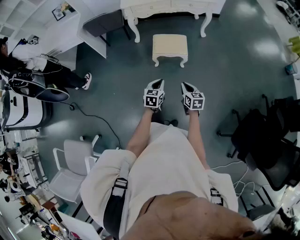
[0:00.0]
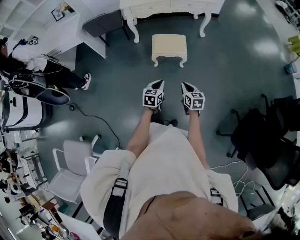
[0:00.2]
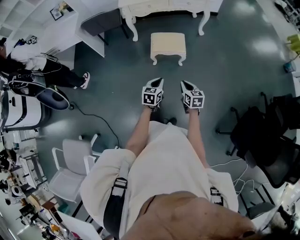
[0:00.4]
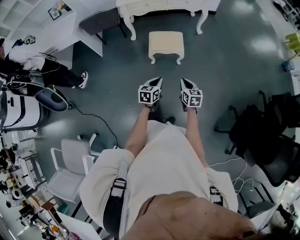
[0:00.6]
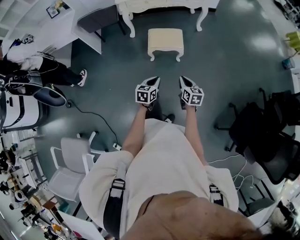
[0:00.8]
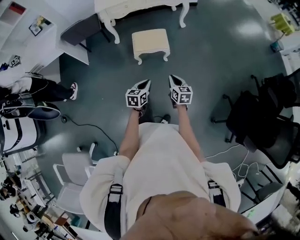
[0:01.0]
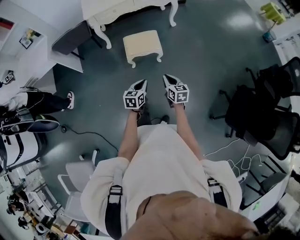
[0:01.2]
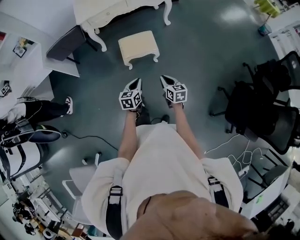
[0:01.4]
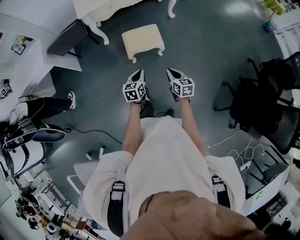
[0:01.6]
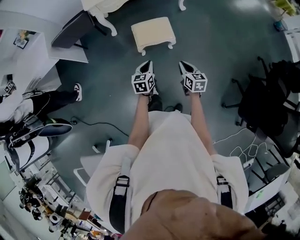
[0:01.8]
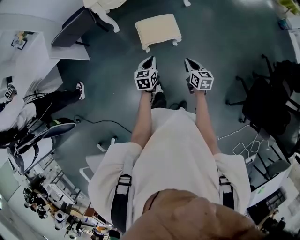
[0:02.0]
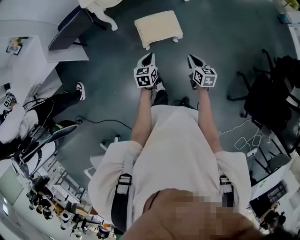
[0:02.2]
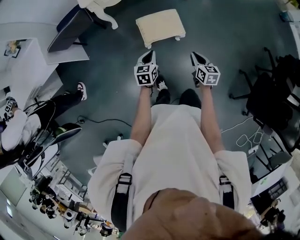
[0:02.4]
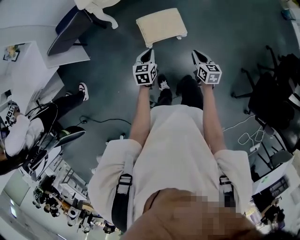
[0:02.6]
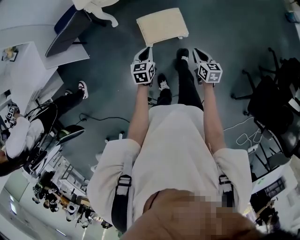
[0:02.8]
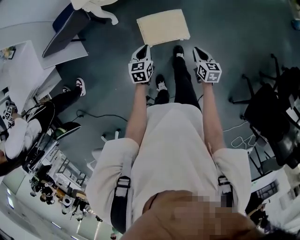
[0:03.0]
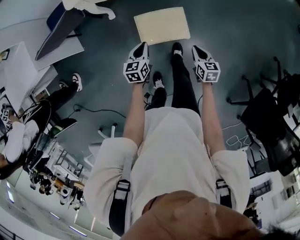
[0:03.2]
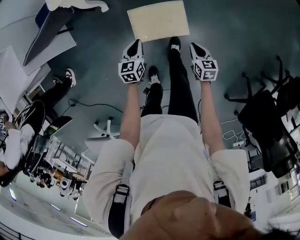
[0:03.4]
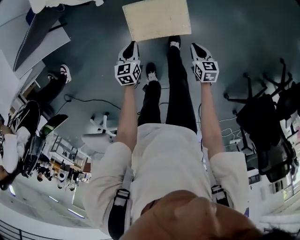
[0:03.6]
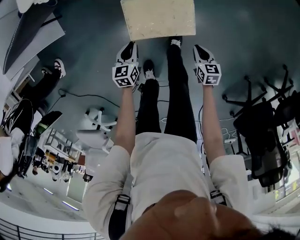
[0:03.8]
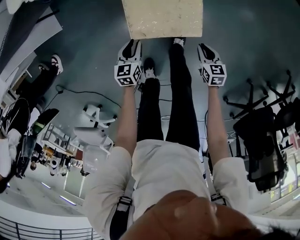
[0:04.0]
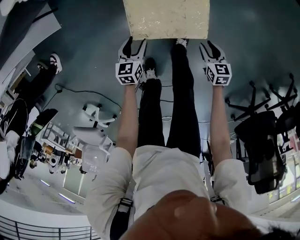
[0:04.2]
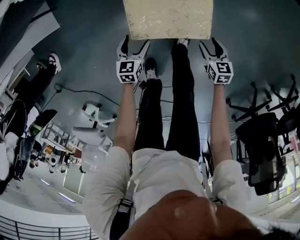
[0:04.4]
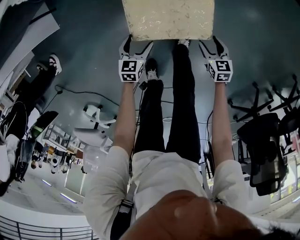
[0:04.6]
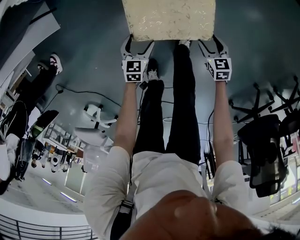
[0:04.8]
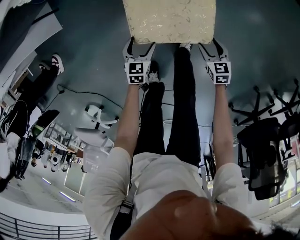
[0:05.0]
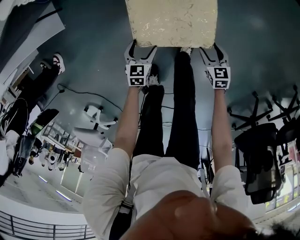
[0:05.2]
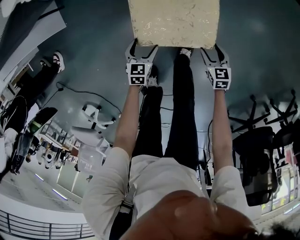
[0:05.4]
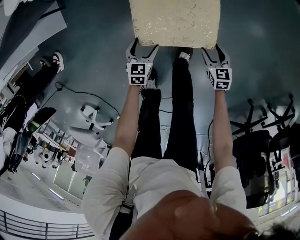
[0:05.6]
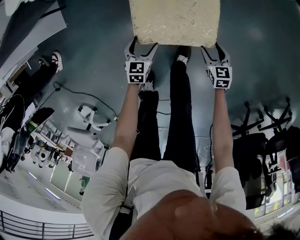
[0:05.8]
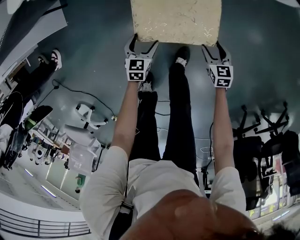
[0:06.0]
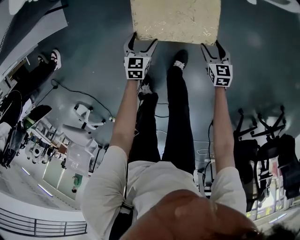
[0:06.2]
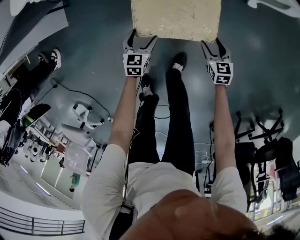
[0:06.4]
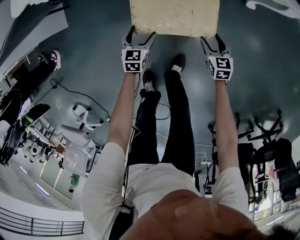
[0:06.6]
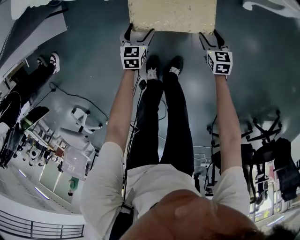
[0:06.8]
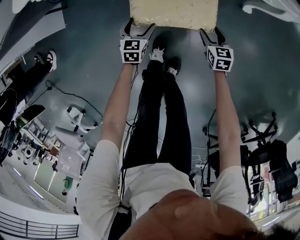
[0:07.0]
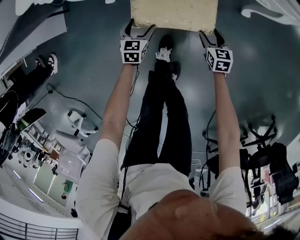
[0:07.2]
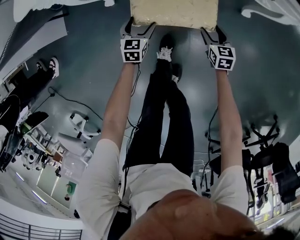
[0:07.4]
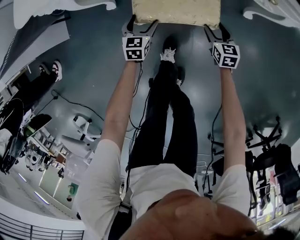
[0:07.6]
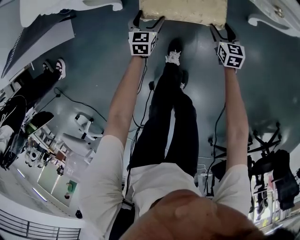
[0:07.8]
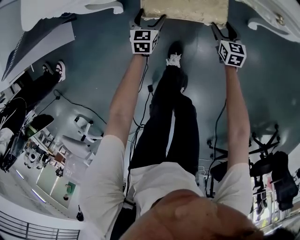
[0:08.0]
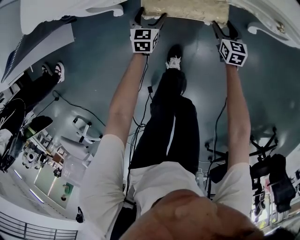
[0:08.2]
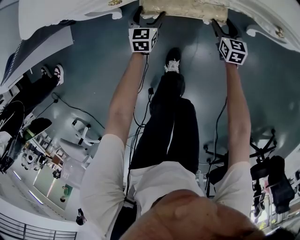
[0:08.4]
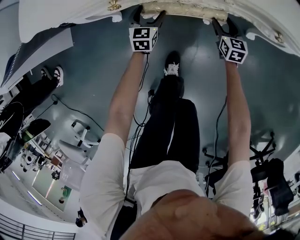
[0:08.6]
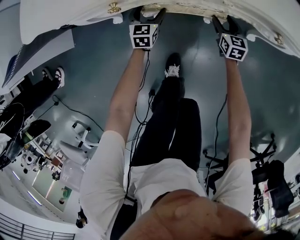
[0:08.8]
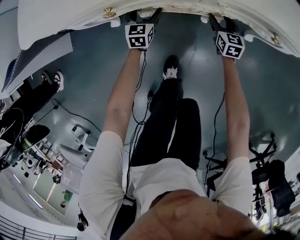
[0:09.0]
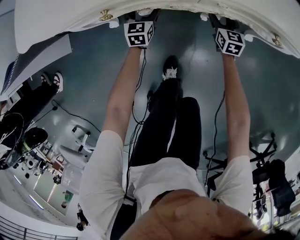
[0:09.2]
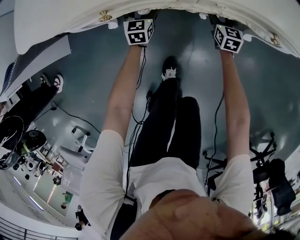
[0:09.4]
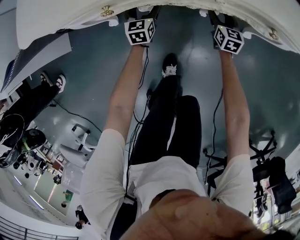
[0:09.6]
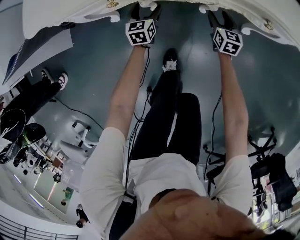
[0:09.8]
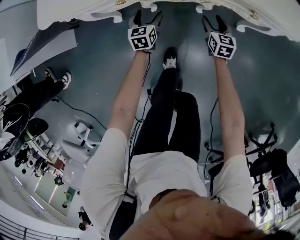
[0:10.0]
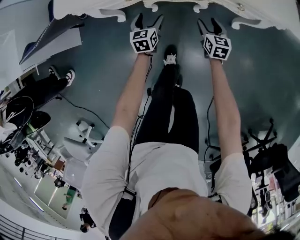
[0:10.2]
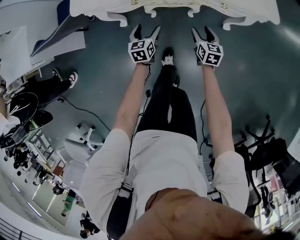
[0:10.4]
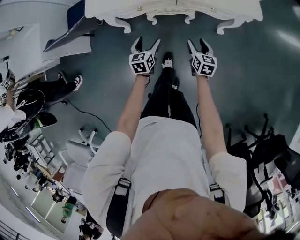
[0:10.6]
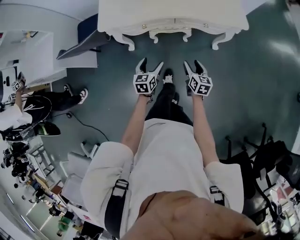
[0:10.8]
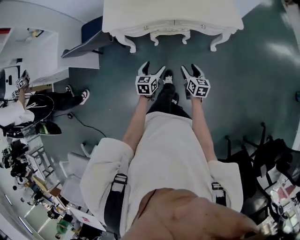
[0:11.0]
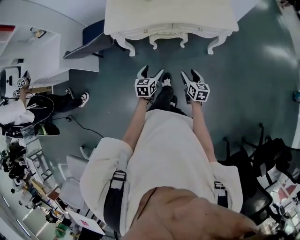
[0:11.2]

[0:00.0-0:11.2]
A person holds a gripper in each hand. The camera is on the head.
0:00.0 to 0:01.6: Both grippers move forward, roughly 10 cm.
0:01.6 to 0:03.2: The right gripper travels forward and downward by some 35 cm; the left gripper shifts roughly 35 cm forward.
0:03.2 to 0:04.8: The two grippers go approximately 35 cm downward. The right gripper rotates approximately 20 degrees, and opens up. Meanwhile the left gripper opens up.
0:04.8 to 0:06.4: Both grippers travel together forward, some 15 cm.
0:06.4 to 0:08.0: Both grippers travel together forward, some 25 cm.
0:08.0 to 0:09.6: The grippers both shift forward by approximately 10 cm.
0:09.6 to 0:11.2: Both grippers travel together upward and backward, roughly 60 cm.

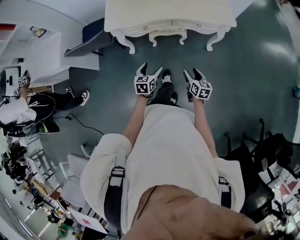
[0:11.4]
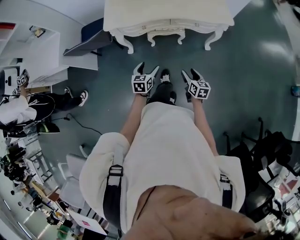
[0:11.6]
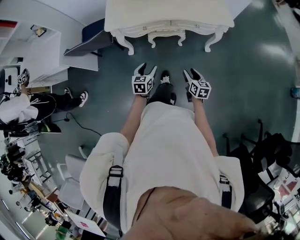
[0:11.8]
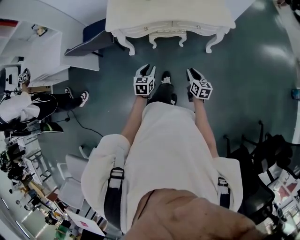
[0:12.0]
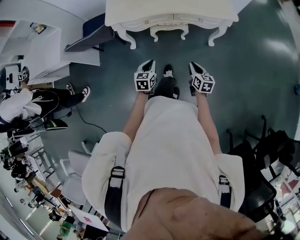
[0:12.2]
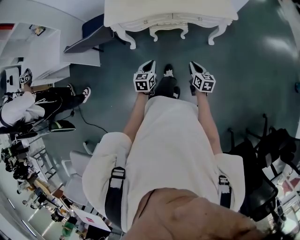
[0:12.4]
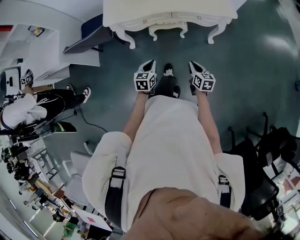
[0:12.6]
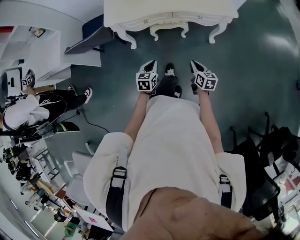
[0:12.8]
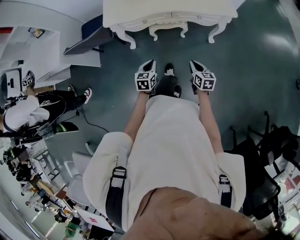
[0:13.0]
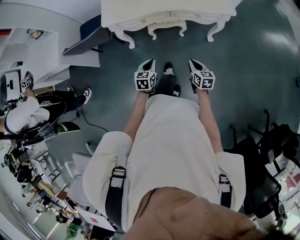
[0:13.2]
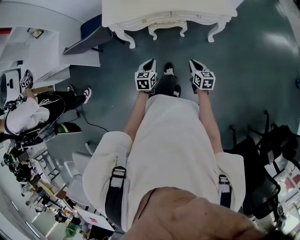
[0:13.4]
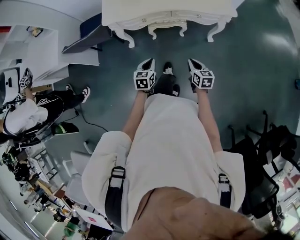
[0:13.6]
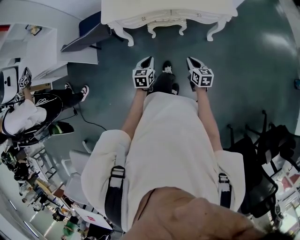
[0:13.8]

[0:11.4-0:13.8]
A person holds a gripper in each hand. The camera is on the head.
0:11.4 to 0:12.6: The left gripper closes. The right gripper closes its fingers.
0:12.6 to 0:13.8: There are only small adjustments of the grippers.

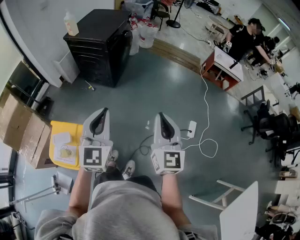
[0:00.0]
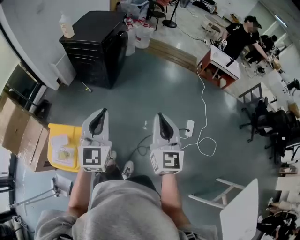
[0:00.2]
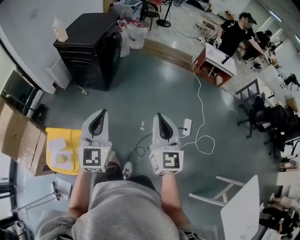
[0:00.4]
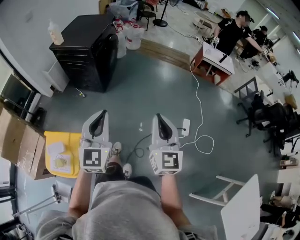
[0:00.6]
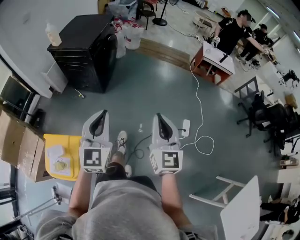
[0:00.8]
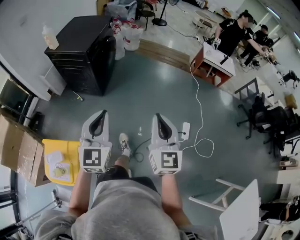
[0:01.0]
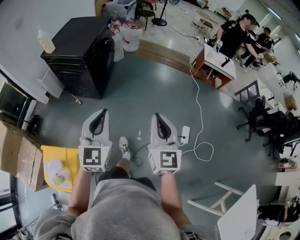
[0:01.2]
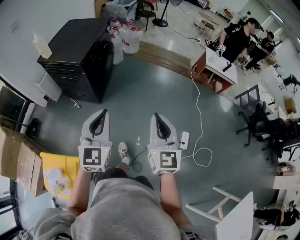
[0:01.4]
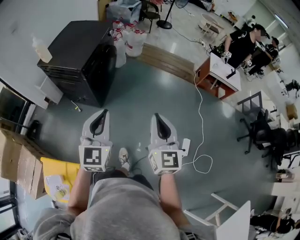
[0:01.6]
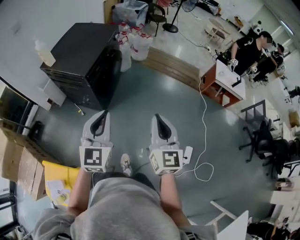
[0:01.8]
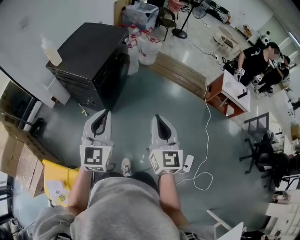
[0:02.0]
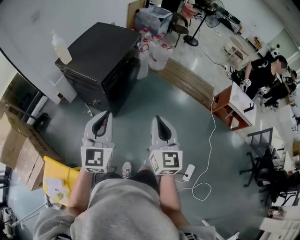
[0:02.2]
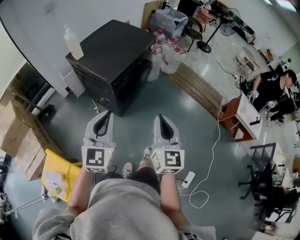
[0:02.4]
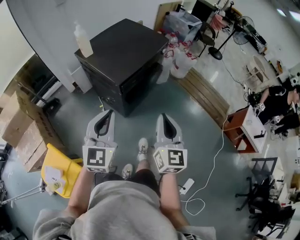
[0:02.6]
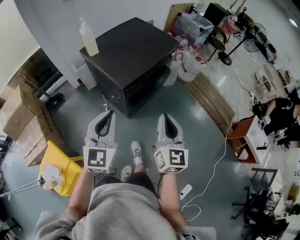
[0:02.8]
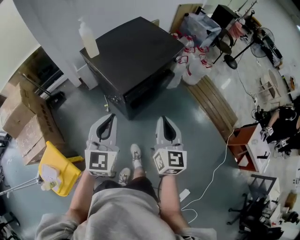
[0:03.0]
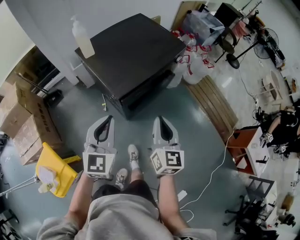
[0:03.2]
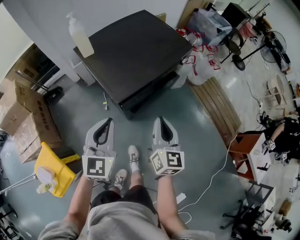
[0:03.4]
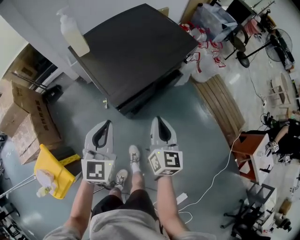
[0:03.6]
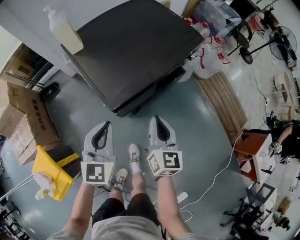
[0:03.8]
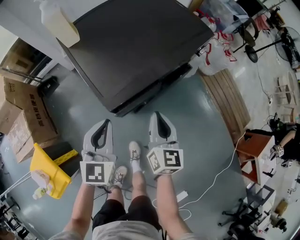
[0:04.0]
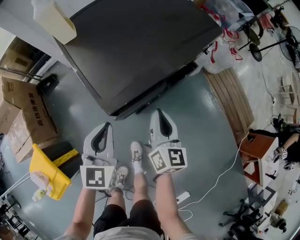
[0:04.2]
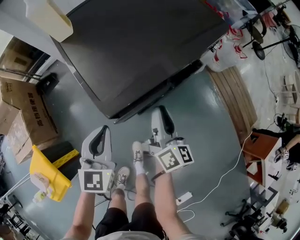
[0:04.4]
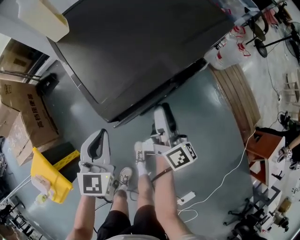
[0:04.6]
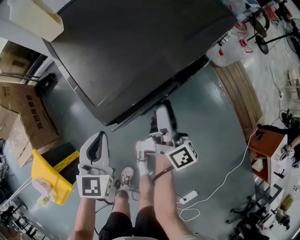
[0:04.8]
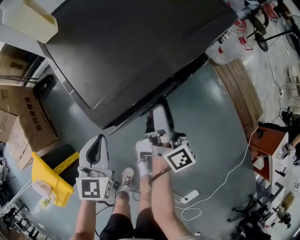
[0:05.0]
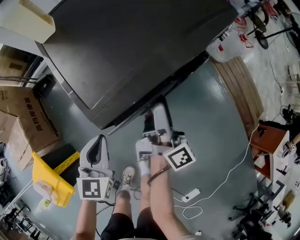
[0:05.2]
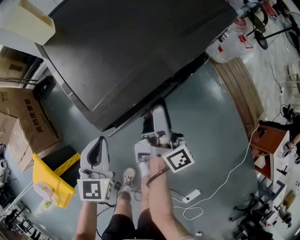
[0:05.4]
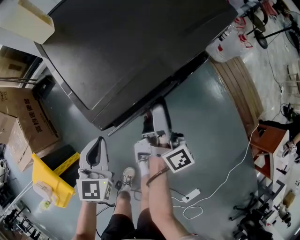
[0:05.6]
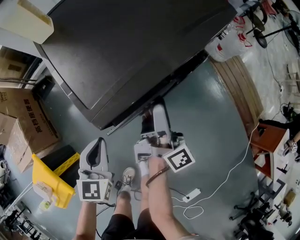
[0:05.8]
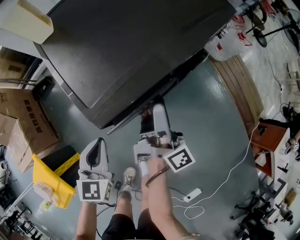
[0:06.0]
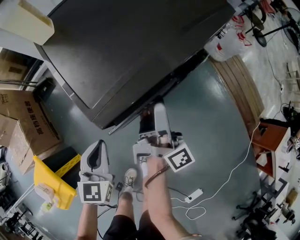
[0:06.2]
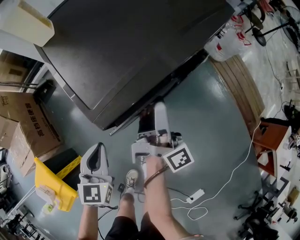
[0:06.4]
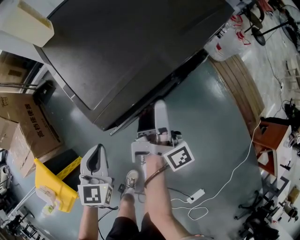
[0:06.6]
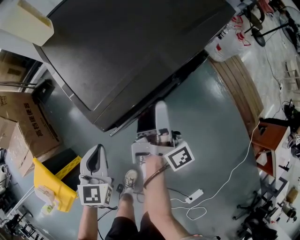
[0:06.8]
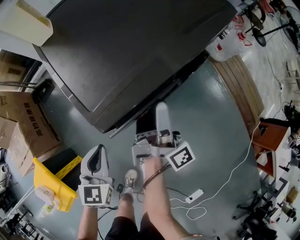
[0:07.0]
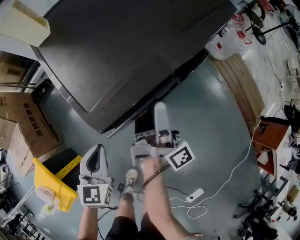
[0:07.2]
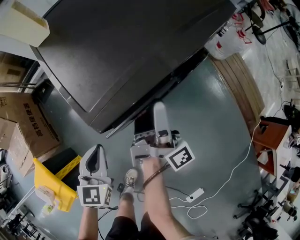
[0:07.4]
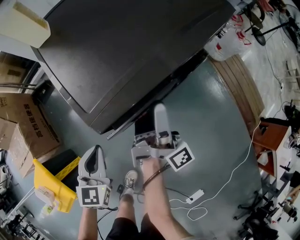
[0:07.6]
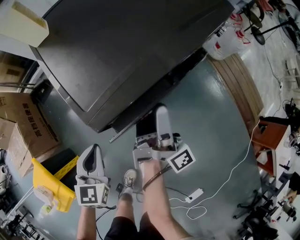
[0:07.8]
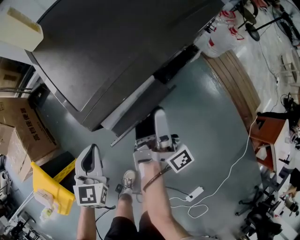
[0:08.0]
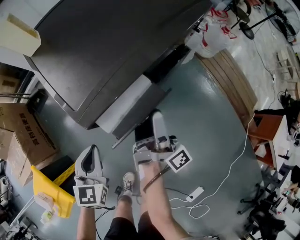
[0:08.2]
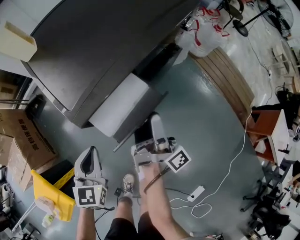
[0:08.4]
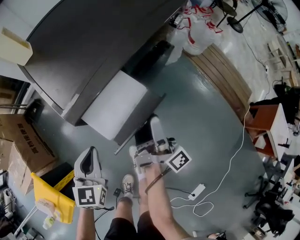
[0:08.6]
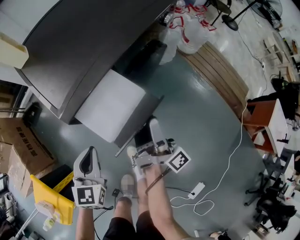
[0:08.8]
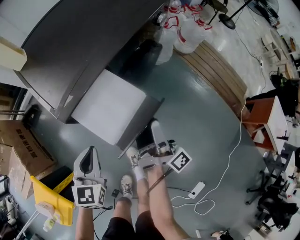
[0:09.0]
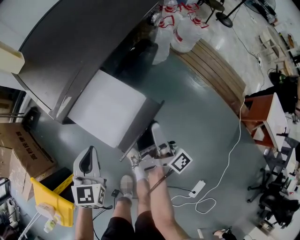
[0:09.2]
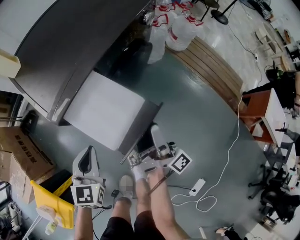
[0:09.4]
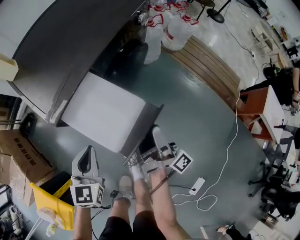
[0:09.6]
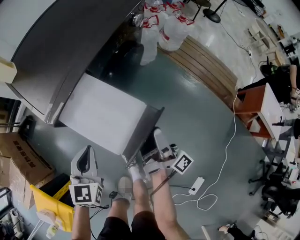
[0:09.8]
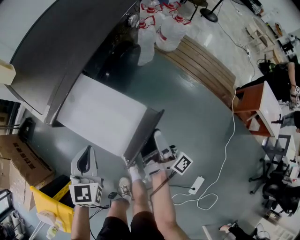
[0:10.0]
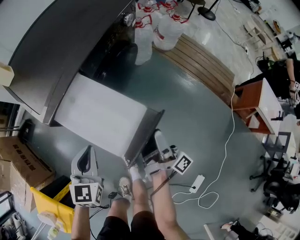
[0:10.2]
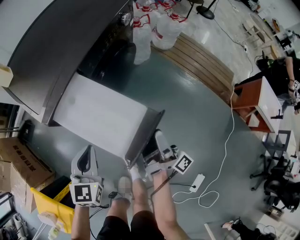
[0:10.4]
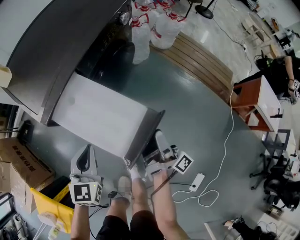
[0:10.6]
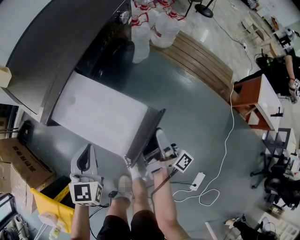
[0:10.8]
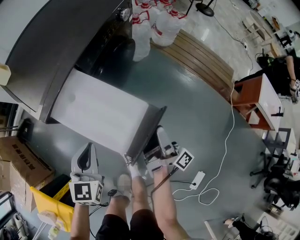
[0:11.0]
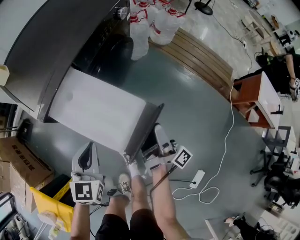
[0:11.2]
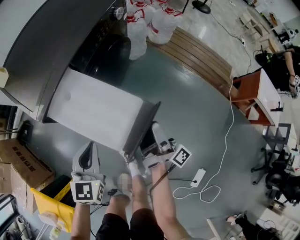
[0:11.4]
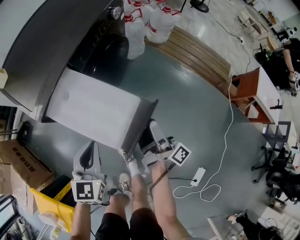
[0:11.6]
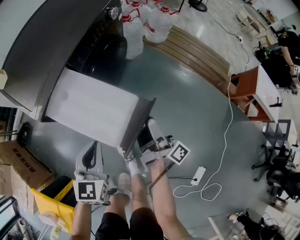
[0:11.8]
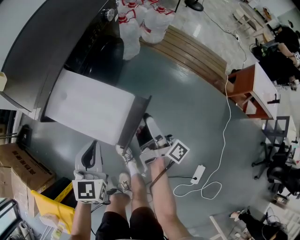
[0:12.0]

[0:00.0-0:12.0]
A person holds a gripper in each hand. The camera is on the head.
0:00.0 to 0:01.6: The two grippers go approximately 30 cm forward.
0:01.6 to 0:03.0: The right gripper changes place by roughly 40 cm, and rotates some 30 degrees, while the left gripper moves some 30 cm, and swivels about 30 degrees.
0:03.0 to 0:04.4: Both grippers move downward and forward, roughly 30 cm. The right gripper swivels some 40 degrees.
0:04.4 to 0:06.0: The right gripper turns by roughly 40 degrees, and opens its fingers; the left gripper heads downward, covering some 5 cm.
0:06.0 to 0:07.6: The grippers move only a little.
0:07.6 to 0:09.0: The left gripper heads to the right, covering roughly 10 cm. Meanwhile the right gripper goes roughly 15 cm to the right and backward.
0:09.0 to 0:10.4: The left gripper is displaced to the right by roughly 5 cm. The right gripper travels to the right and backward by roughly 10 cm.
0:10.4 to 0:12.0: The left gripper goes approximately 5 cm to the right.
